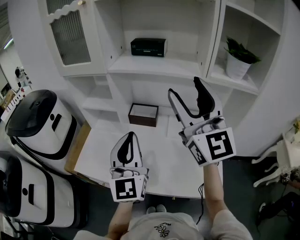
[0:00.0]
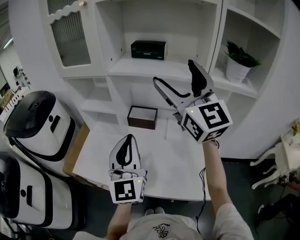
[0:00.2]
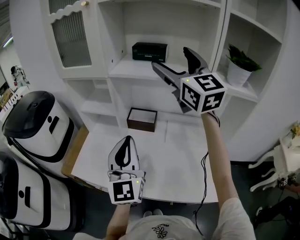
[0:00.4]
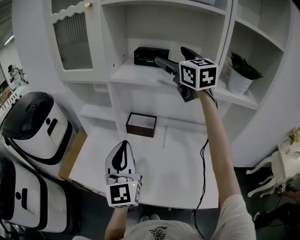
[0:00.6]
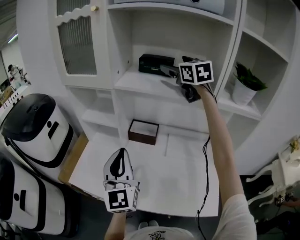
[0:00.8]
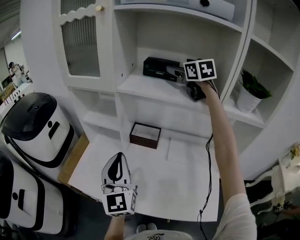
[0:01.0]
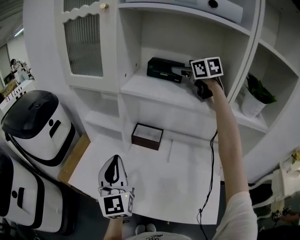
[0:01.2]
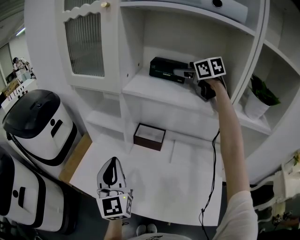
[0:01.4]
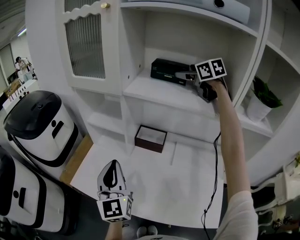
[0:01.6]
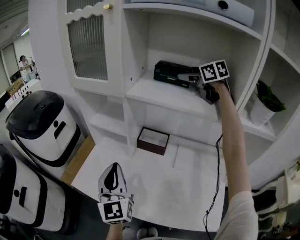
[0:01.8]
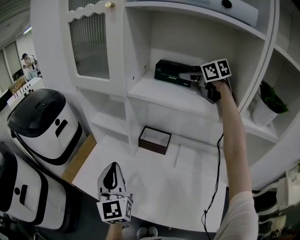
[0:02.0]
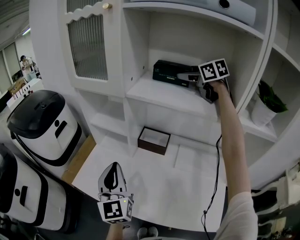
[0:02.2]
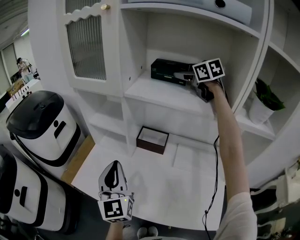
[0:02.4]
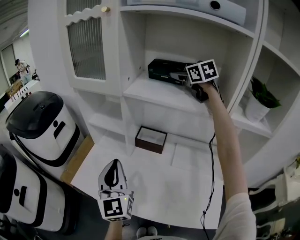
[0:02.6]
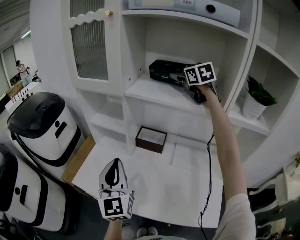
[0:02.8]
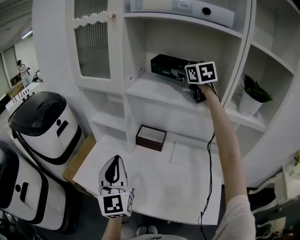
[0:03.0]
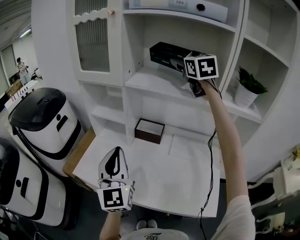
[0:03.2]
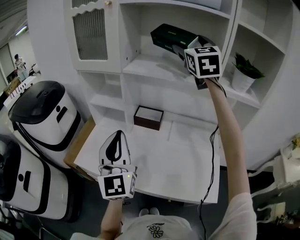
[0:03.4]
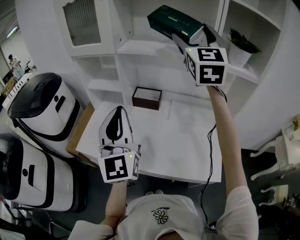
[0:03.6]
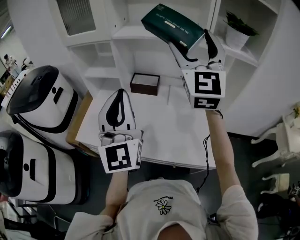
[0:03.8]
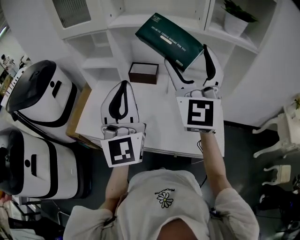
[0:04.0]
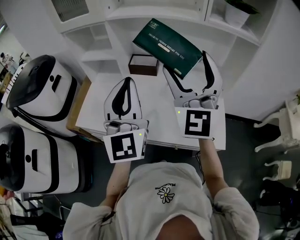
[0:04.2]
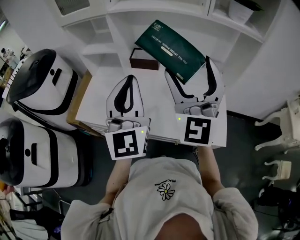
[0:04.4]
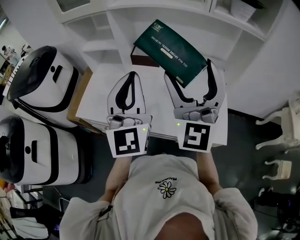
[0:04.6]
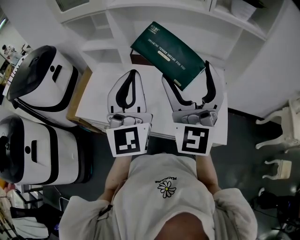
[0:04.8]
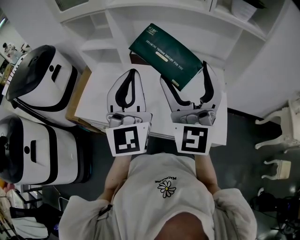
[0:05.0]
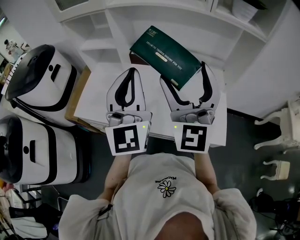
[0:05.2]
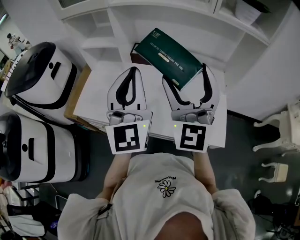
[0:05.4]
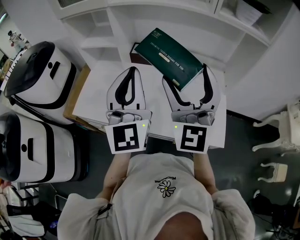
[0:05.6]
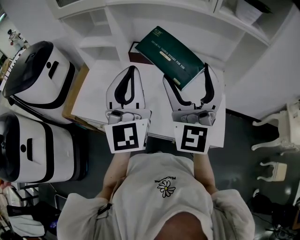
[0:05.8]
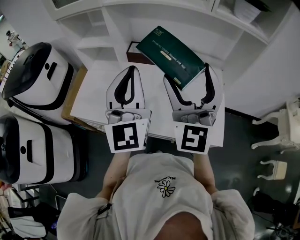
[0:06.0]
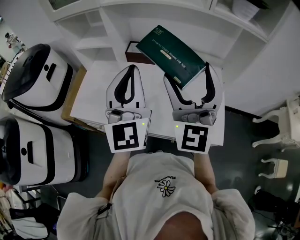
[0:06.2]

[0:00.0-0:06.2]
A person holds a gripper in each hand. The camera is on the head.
0:00.0 to 0:01.6: The right gripper shifts about 35 cm forward, tilts its fingers some 50 degrees downward, and opens its fingers; the left gripper travels to the left, forward and downward by roughly 15 cm.
0:01.6 to 0:03.2: The left gripper heads backward, covering roughly 5 cm. The right gripper goes about 15 cm backward and upward, and turns by roughly 30 degrees.
0:03.2 to 0:04.6: The left gripper travels to the right and backward by approximately 10 cm. Meanwhile the right gripper heads backward and downward, covering approximately 40 cm, and swivels some 30 degrees.
0:04.6 to 0:06.2: The grippers stay close to where they were, moving slightly.

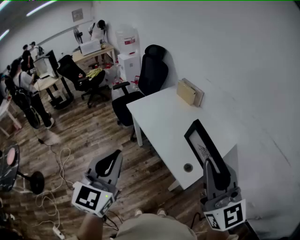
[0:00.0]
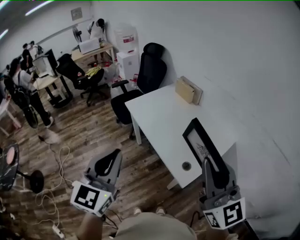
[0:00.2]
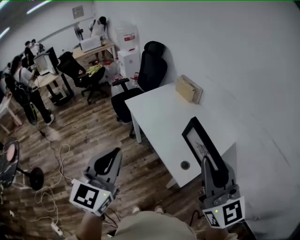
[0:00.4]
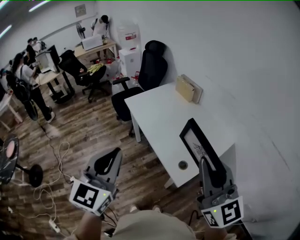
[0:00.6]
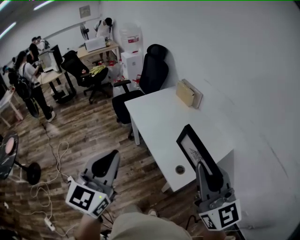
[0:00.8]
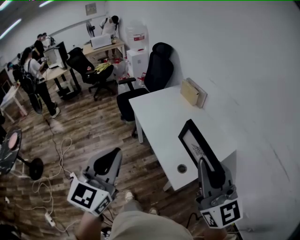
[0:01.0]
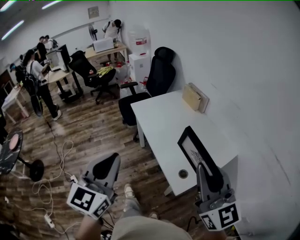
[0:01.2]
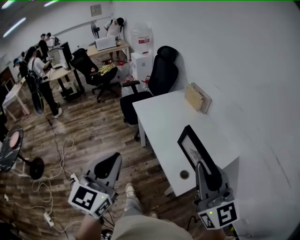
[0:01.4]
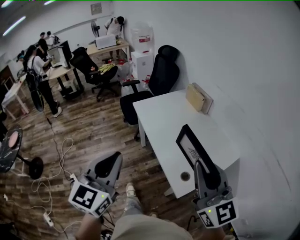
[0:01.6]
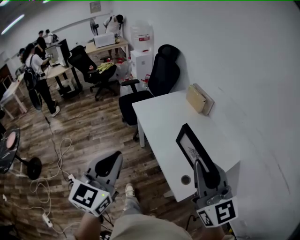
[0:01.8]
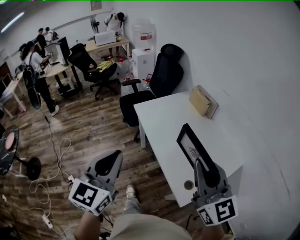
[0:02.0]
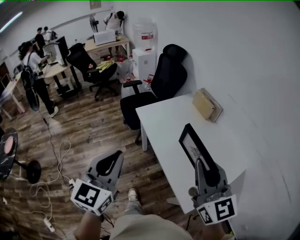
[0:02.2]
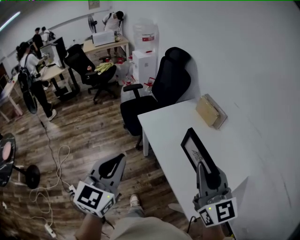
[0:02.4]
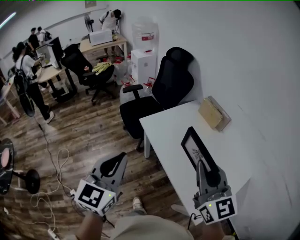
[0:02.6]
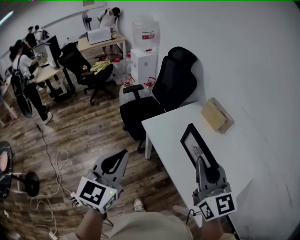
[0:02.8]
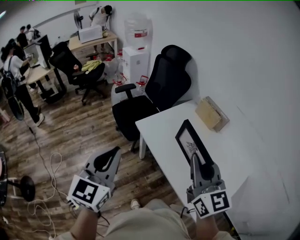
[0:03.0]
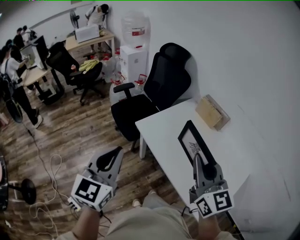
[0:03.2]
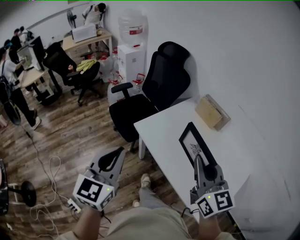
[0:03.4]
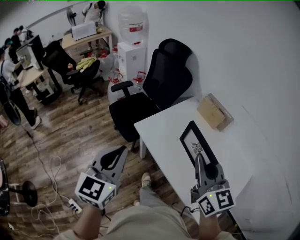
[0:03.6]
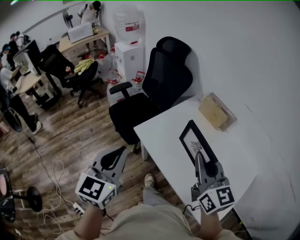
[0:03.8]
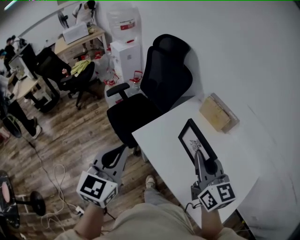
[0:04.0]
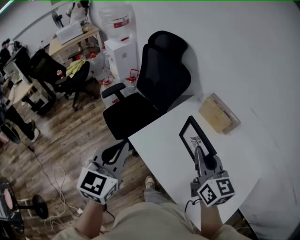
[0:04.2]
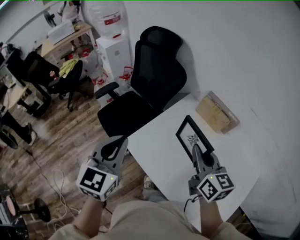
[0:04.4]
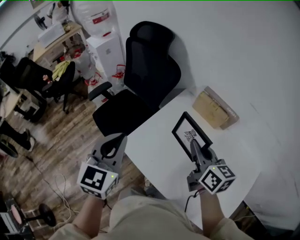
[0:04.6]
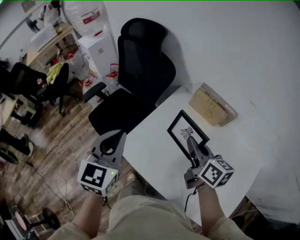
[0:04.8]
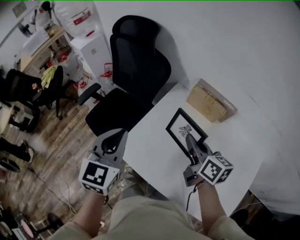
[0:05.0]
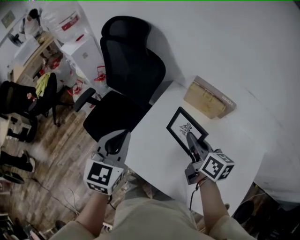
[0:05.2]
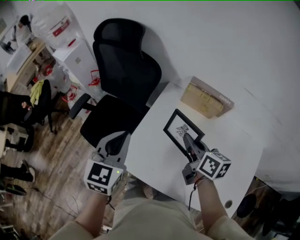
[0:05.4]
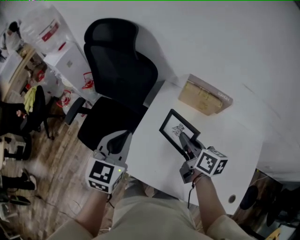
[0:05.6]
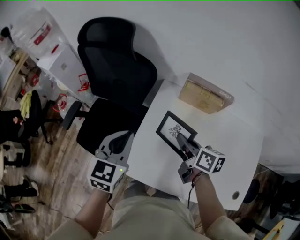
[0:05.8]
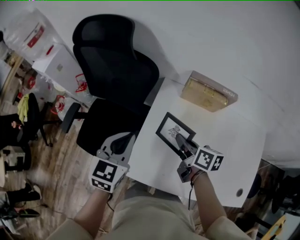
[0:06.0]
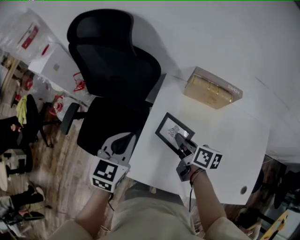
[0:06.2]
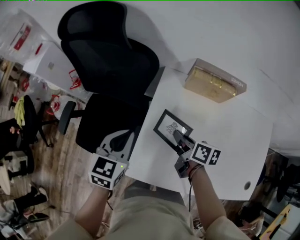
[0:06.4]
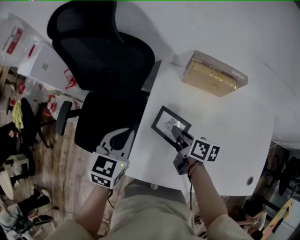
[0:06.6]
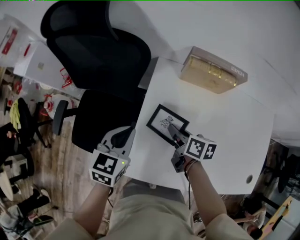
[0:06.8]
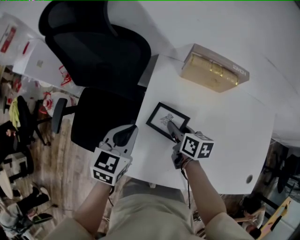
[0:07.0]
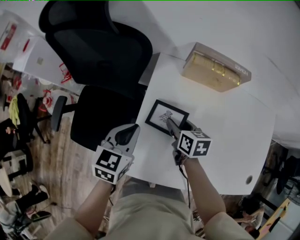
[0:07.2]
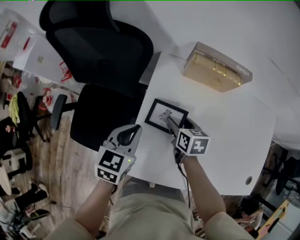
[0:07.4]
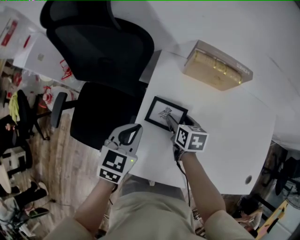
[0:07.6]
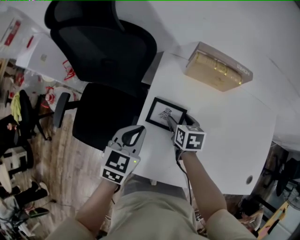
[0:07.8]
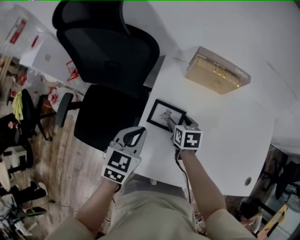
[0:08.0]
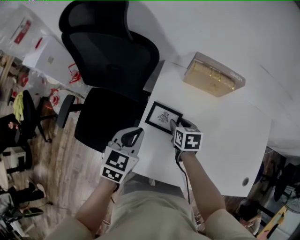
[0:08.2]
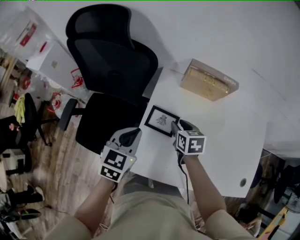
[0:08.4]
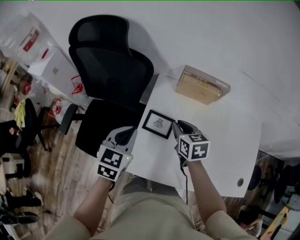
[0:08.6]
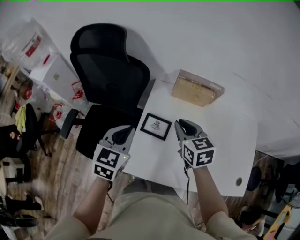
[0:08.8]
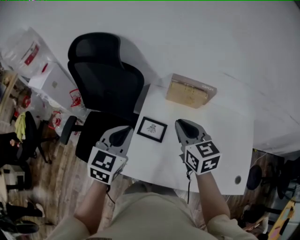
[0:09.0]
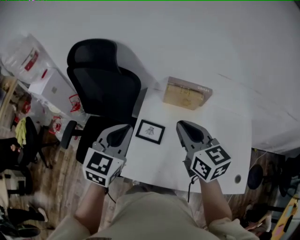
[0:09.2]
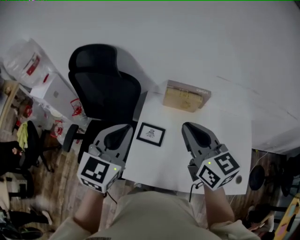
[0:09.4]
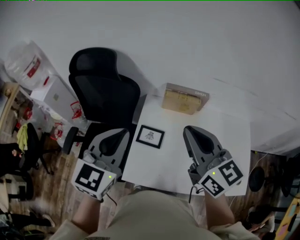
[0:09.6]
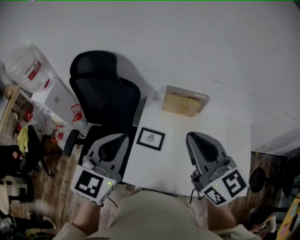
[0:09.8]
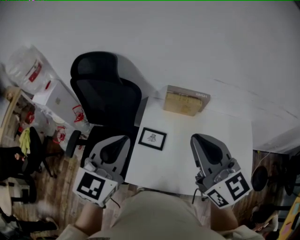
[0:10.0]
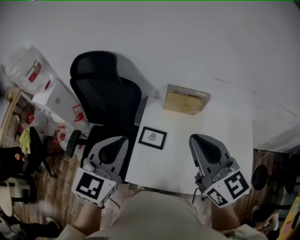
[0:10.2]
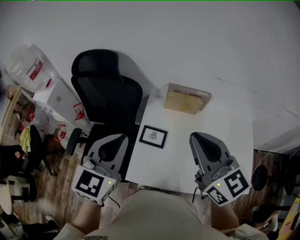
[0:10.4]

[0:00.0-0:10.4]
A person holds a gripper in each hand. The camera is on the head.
0:00.0 to 0:01.4: The right gripper moves about 5 cm.
0:01.4 to 0:03.0: The two grippers go some 40 cm forward and to the left.
0:03.0 to 0:04.4: The left gripper moves forward, approximately 30 cm; the right gripper shifts approximately 30 cm forward and downward, and changes its angle by approximately 30 degrees.
0:04.4 to 0:06.0: The right gripper goes about 25 cm downward and forward, and rotates around the line of its fingers by approximately 40 degrees, clockwise from behind. Meanwhile the left gripper goes approximately 25 cm forward and downward, and swivels some 30 degrees.
0:06.0 to 0:07.4: The grippers both shift downward by approximately 15 cm. The right gripper changes its angle by approximately 30 degrees, and opens its fingers.
0:07.4 to 0:09.0: The right gripper goes approximately 30 cm upward, changes its angle by approximately 30 degrees, and closes up. Meanwhile the left gripper moves upward, approximately 20 cm.
0:09.0 to 0:10.4: The left gripper goes about 10 cm upward; the right gripper is displaced upward and backward by about 20 cm, and turns by approximately 20 degrees.

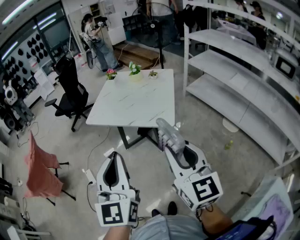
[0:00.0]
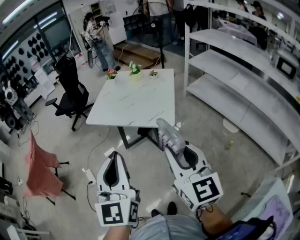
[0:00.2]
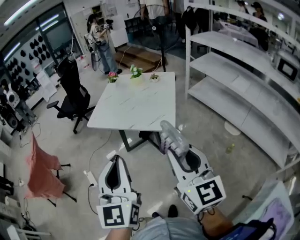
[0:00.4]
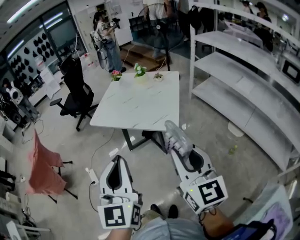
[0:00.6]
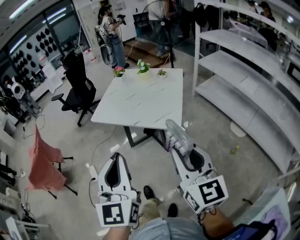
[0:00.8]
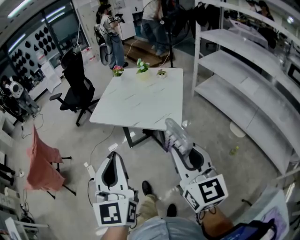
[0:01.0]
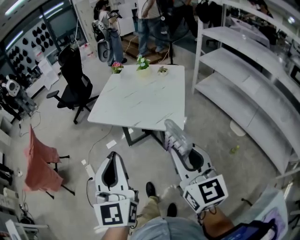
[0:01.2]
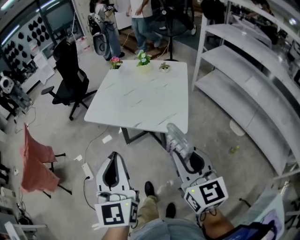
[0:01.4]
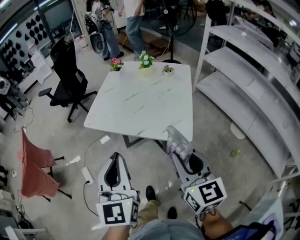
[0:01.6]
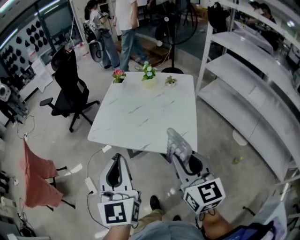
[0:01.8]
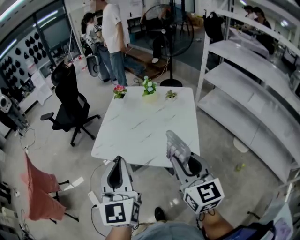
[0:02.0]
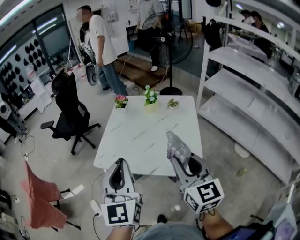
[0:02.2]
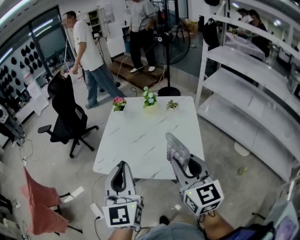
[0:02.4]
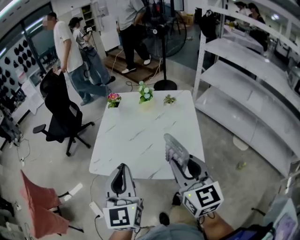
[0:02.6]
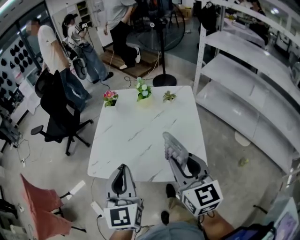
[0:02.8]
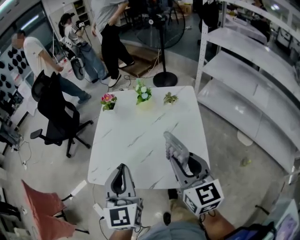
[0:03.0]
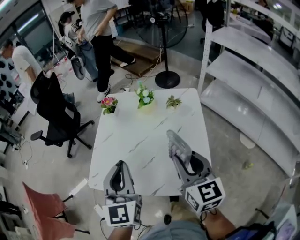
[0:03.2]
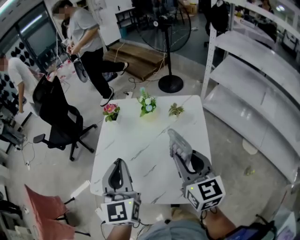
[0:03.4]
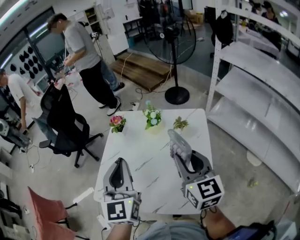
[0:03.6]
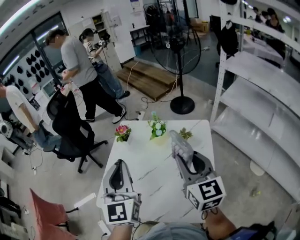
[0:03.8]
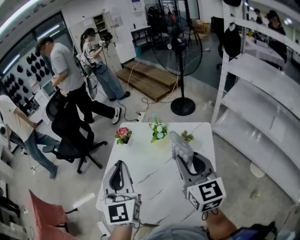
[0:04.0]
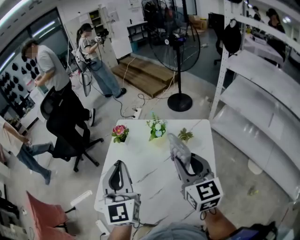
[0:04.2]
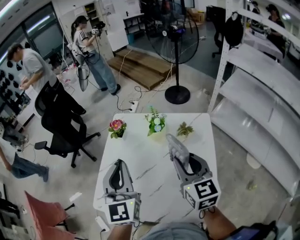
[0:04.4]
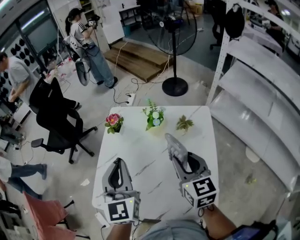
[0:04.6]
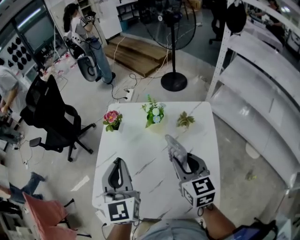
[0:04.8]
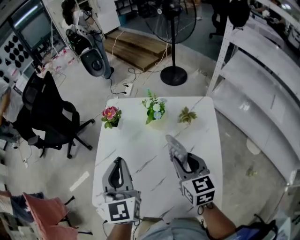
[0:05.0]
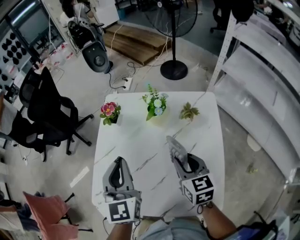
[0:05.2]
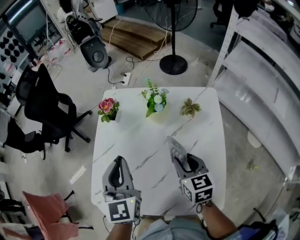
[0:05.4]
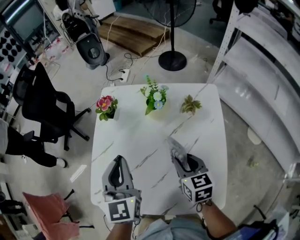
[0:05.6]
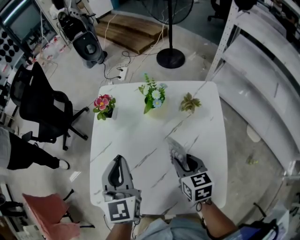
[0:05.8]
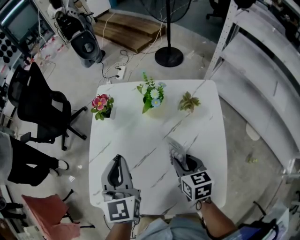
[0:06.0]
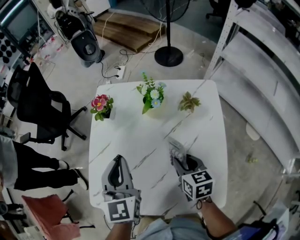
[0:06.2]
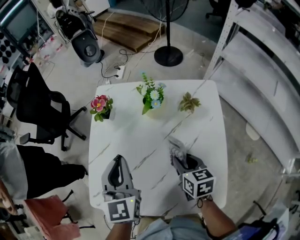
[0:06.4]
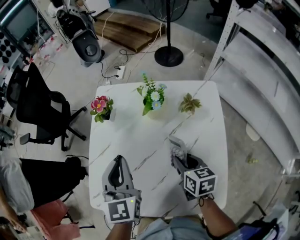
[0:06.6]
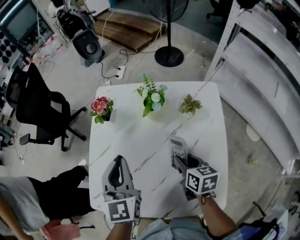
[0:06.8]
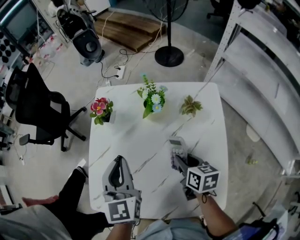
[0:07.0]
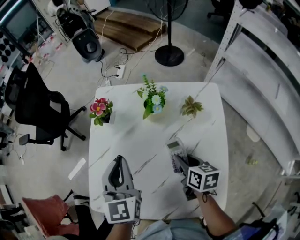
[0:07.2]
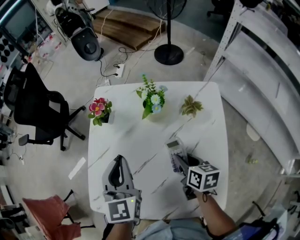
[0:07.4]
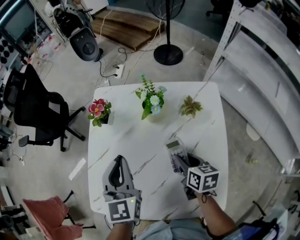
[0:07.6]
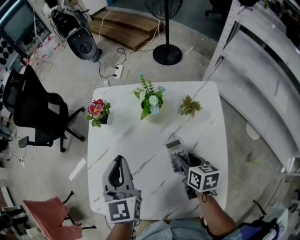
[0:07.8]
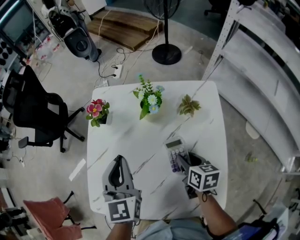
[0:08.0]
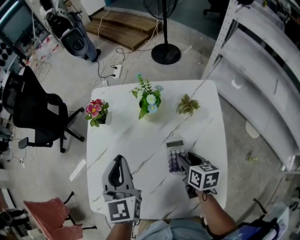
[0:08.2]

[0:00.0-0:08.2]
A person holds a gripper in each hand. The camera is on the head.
0:00.0 to 0:01.6: The left gripper moves forward, about 20 cm. Meanwhile the right gripper is displaced forward and downward by roughly 20 cm.
0:01.6 to 0:03.2: The grippers both shift forward by approximately 30 cm.
0:03.2 to 0:05.0: The left gripper heads forward, covering about 15 cm, while the right gripper moves forward and downward, approximately 20 cm.
0:05.0 to 0:06.6: The left gripper heads downward, covering some 5 cm, while the right gripper goes about 10 cm downward, and changes its angle by some 20 degrees.
0:06.6 to 0:08.2: The right gripper changes place by some 5 cm.
